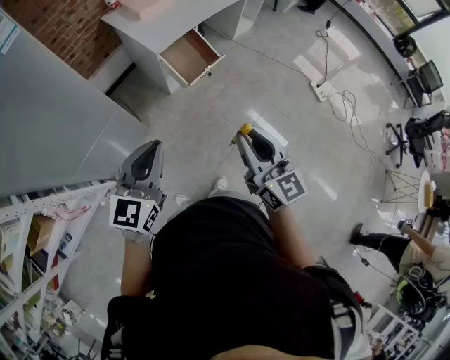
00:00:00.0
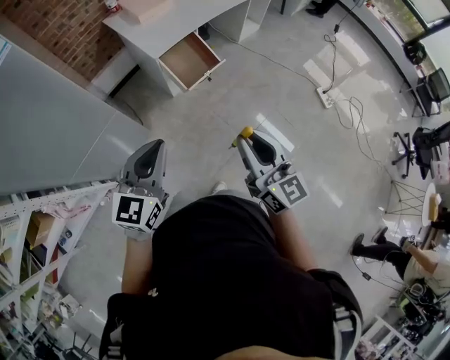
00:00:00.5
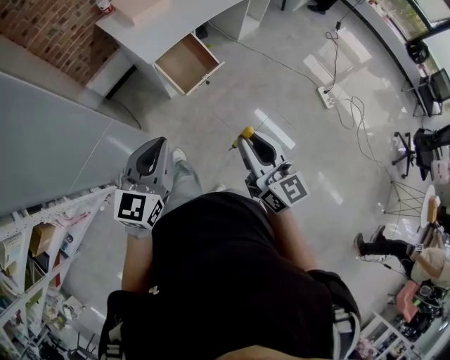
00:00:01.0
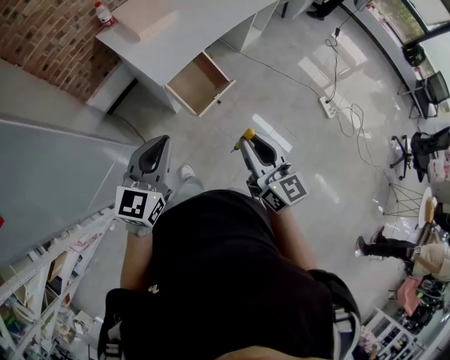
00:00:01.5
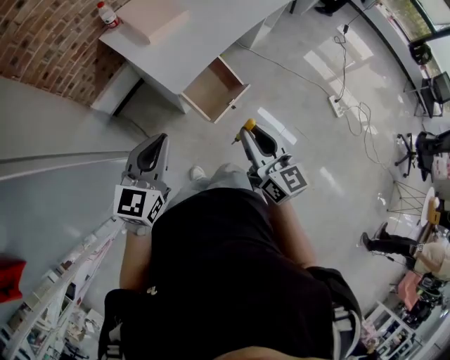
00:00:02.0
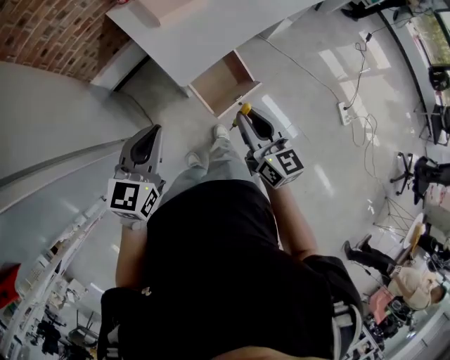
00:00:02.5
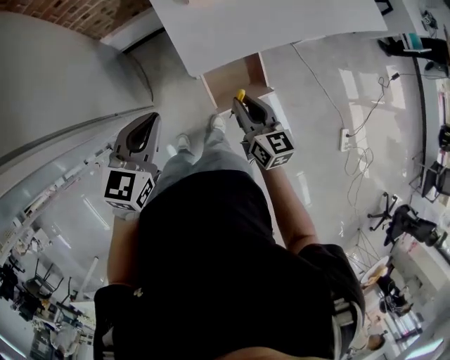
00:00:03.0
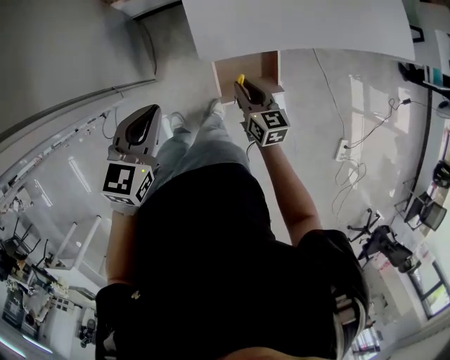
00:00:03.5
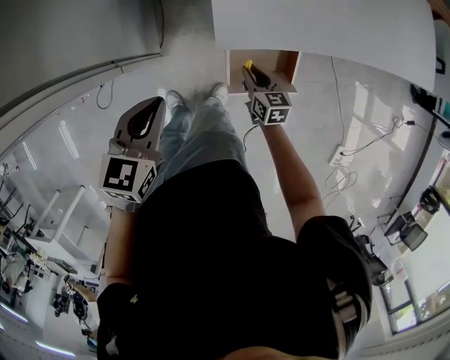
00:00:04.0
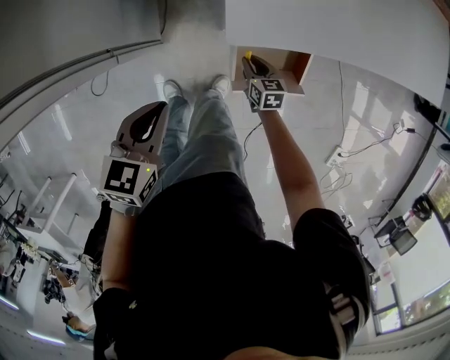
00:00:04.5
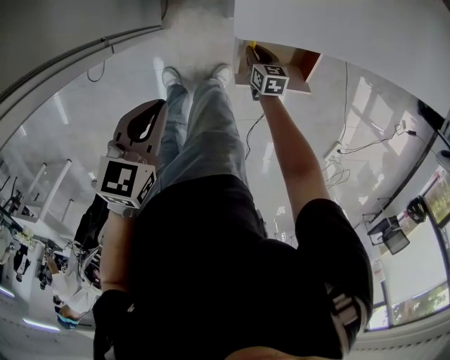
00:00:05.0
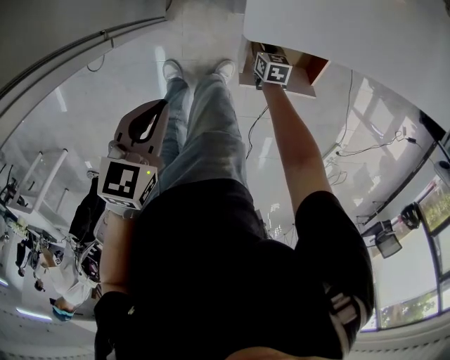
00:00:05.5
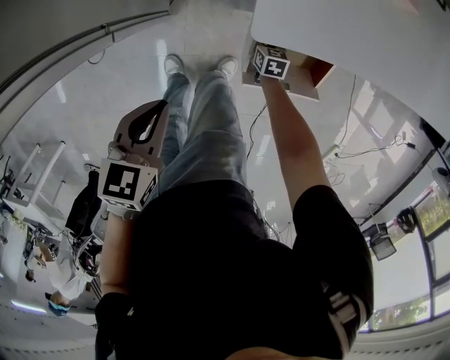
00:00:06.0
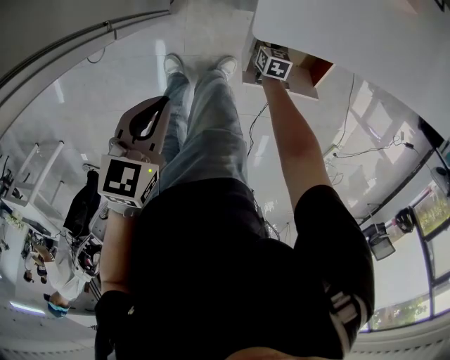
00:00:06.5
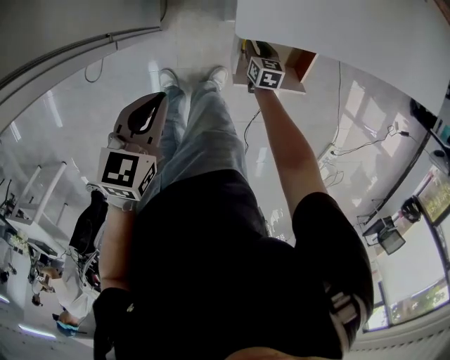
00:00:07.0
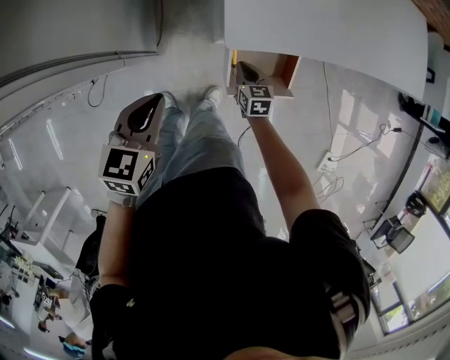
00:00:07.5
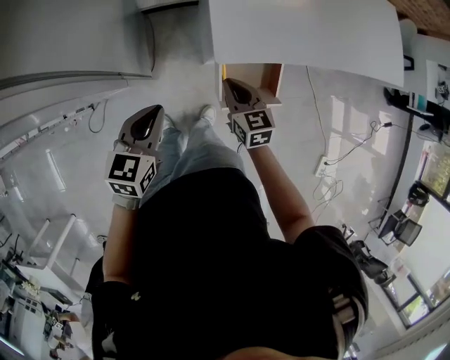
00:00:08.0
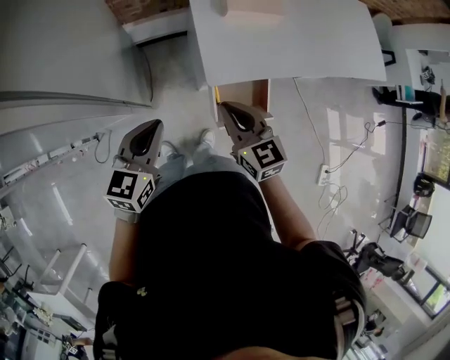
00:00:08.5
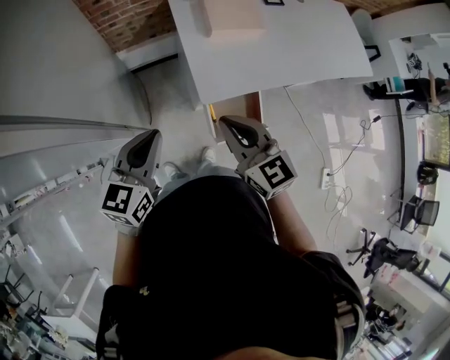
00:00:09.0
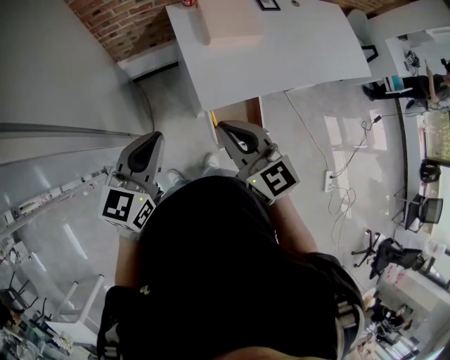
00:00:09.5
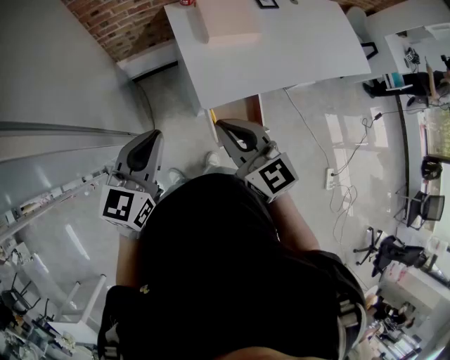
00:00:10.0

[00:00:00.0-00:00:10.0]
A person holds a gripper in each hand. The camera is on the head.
00:00:00.0 to 00:00:02.0: The grippers both shift forward by roughly 30 cm.
00:00:02.0 to 00:00:04.0: The right gripper goes some 40 cm downward, and points its fingers roughly 30 degrees further downward. The left gripper is displaced downward by roughly 15 cm, and changes its angle by about 40 degrees.
00:00:04.0 to 00:00:06.0: The right gripper travels downward by approximately 25 cm; the left gripper heads downward, covering some 15 cm.
00:00:06.0 to 00:00:08.0: The right gripper heads upward, covering some 40 cm, and swivels roughly 20 degrees, while the left gripper heads upward, covering about 15 cm.
00:00:08.0 to 00:00:10.0: Both grippers travel together upward, approximately 25 cm. The right gripper swivels approximately 20 degrees. Meanwhile the left gripper turns by approximately 20 degrees.

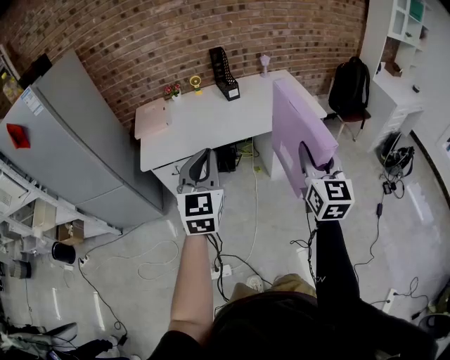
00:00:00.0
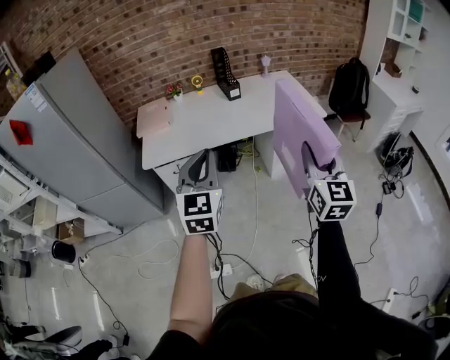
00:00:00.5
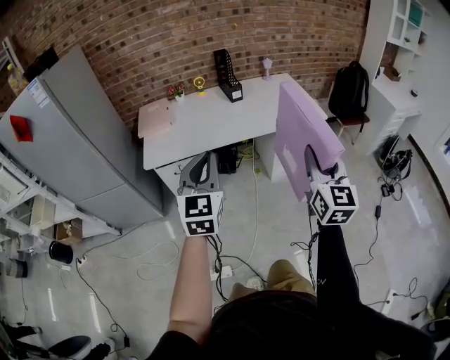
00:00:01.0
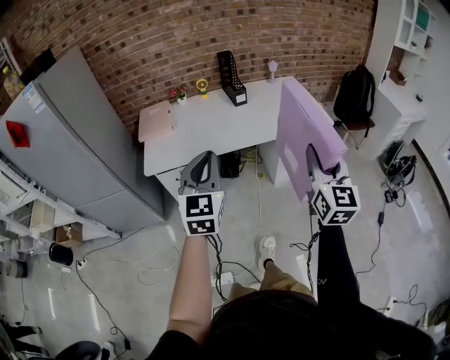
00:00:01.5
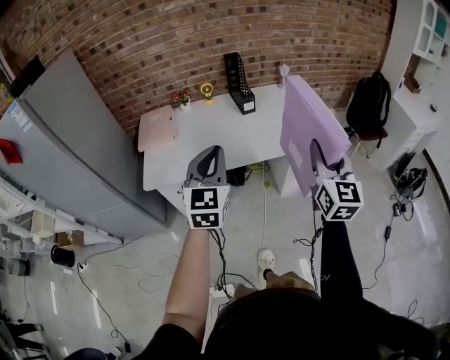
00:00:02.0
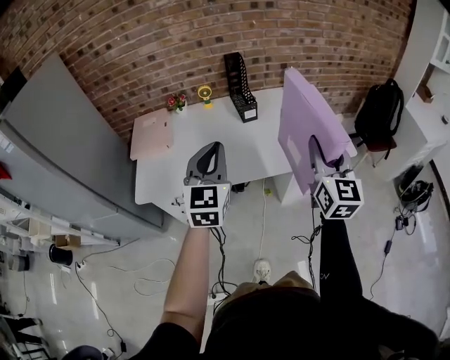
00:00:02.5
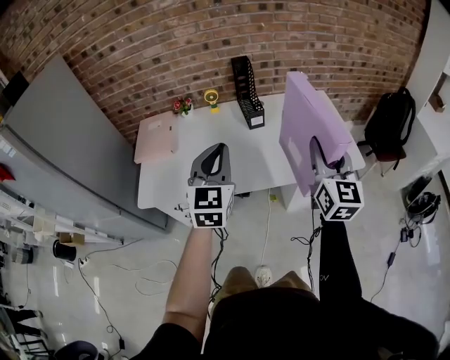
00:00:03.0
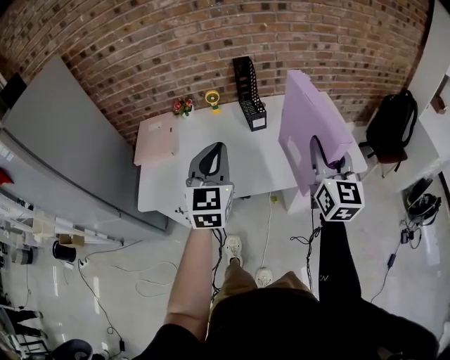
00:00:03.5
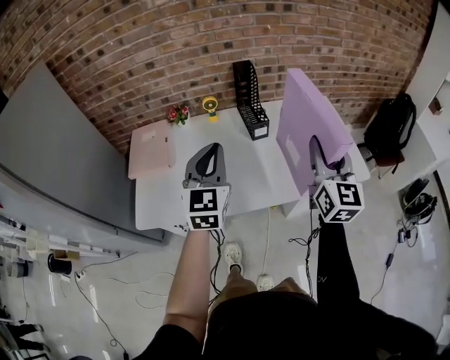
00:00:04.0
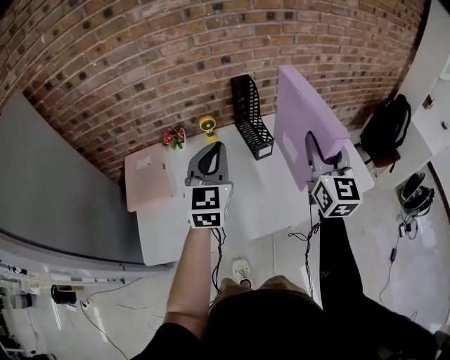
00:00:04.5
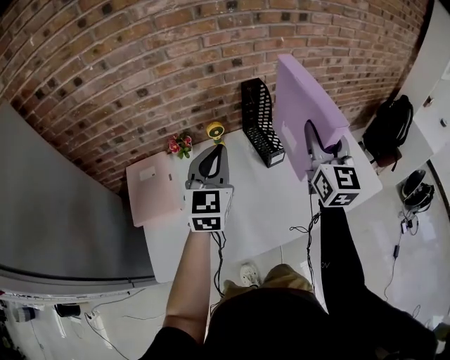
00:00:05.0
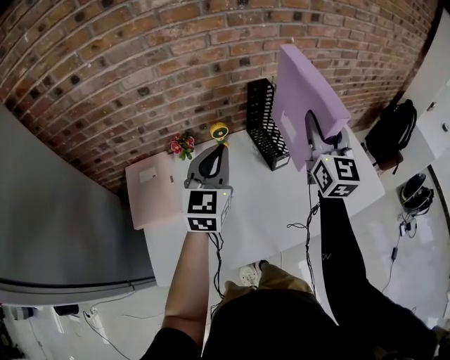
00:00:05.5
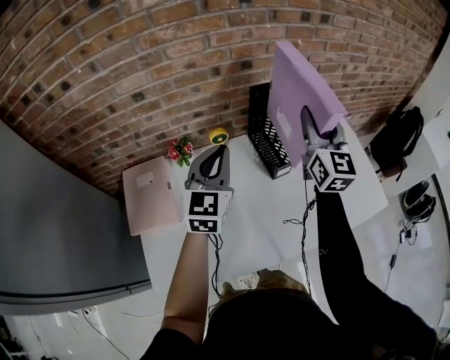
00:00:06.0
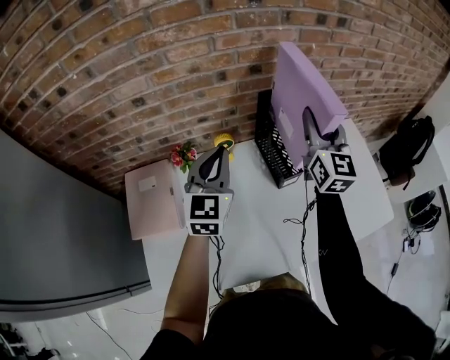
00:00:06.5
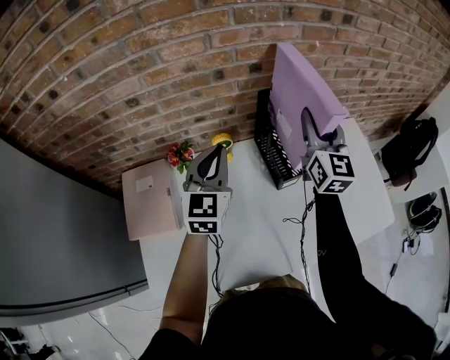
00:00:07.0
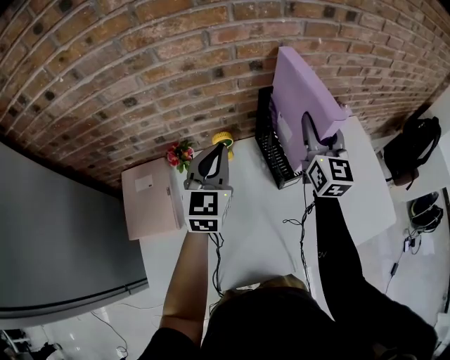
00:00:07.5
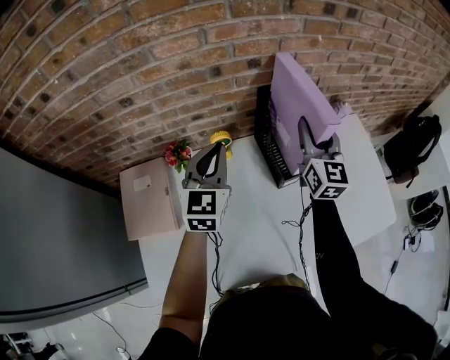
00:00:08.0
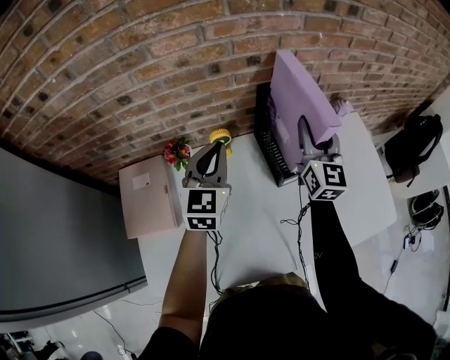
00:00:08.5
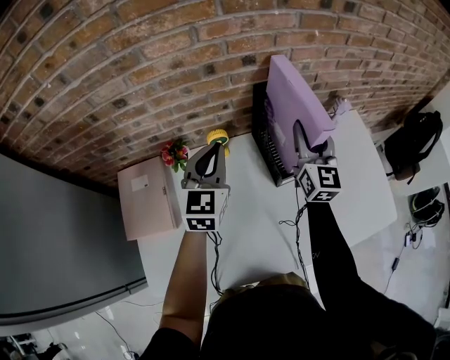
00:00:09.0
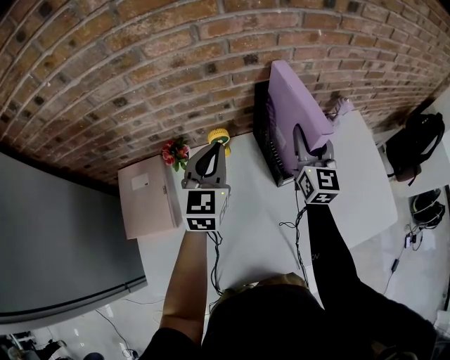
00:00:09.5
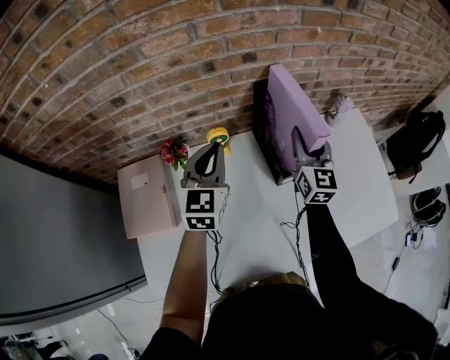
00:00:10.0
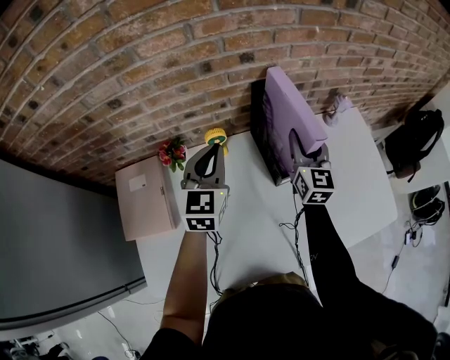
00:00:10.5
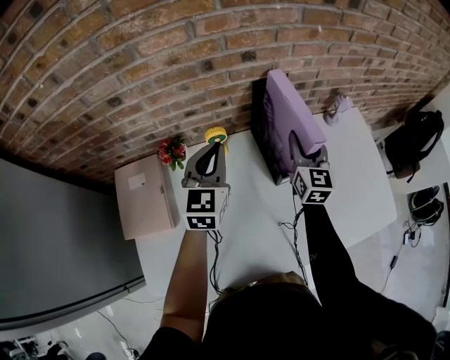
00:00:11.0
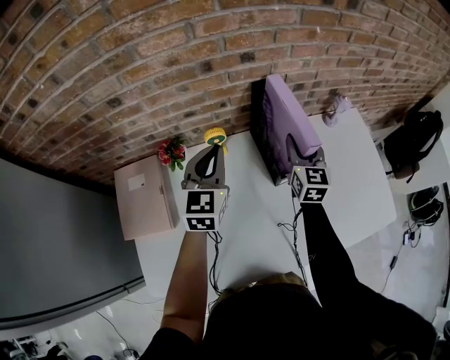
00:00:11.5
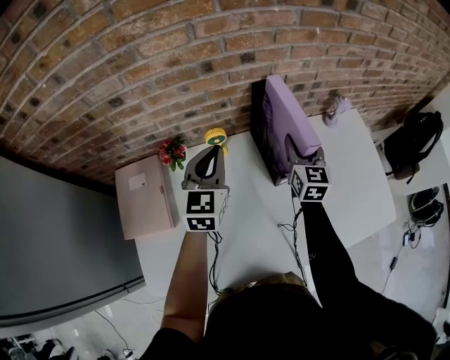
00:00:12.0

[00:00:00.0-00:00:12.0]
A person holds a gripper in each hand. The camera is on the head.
00:00:00.0 to 00:00:02.0: The grippers both shift forward by approximately 15 cm.
00:00:02.0 to 00:00:04.0: The two grippers go about 30 cm forward.
00:00:04.0 to 00:00:06.0: Both grippers move forward and to the left, about 30 cm.
00:00:06.0 to 00:00:08.0: The left gripper moves forward, about 10 cm. Meanwhile the right gripper moves forward and downward, about 15 cm.
00:00:08.0 to 00:00:10.0: The right gripper moves downward, about 5 cm.
00:00:10.0 to 00:00:12.0: The right gripper is displaced downward by roughly 5 cm.

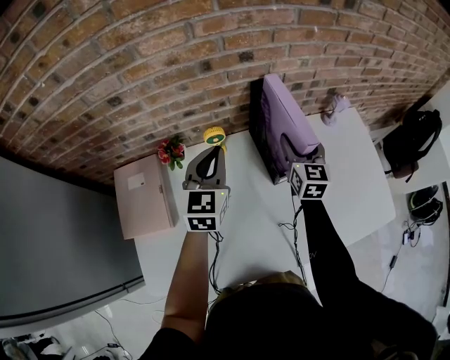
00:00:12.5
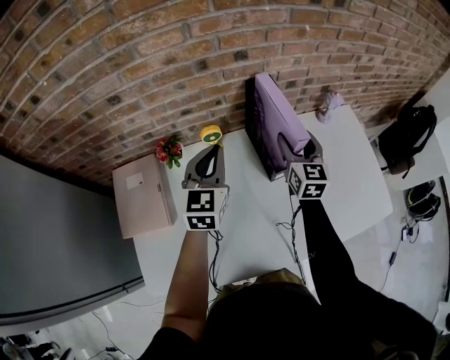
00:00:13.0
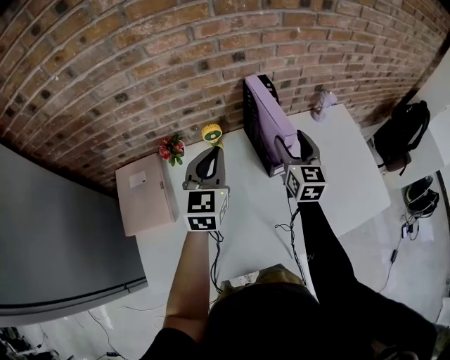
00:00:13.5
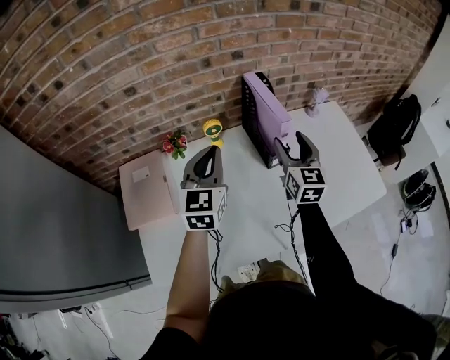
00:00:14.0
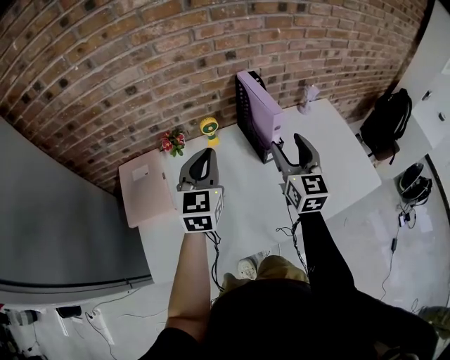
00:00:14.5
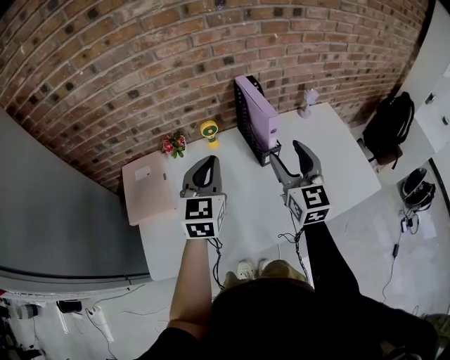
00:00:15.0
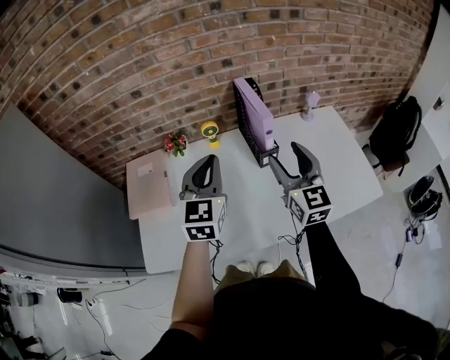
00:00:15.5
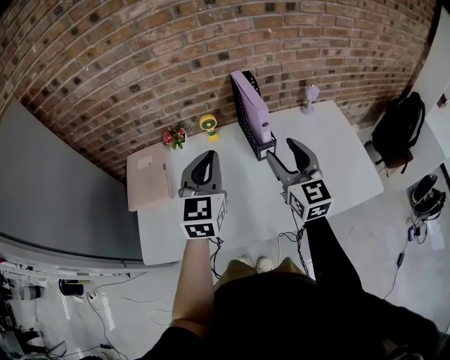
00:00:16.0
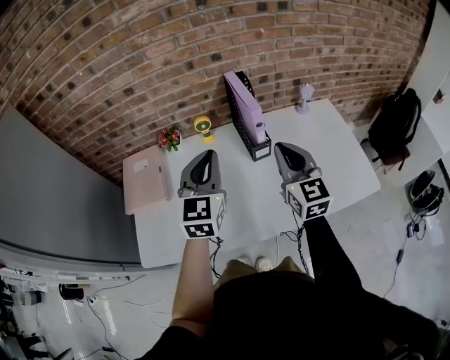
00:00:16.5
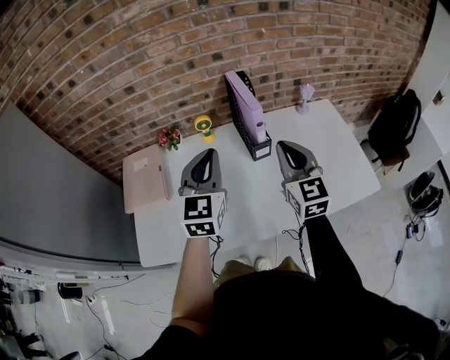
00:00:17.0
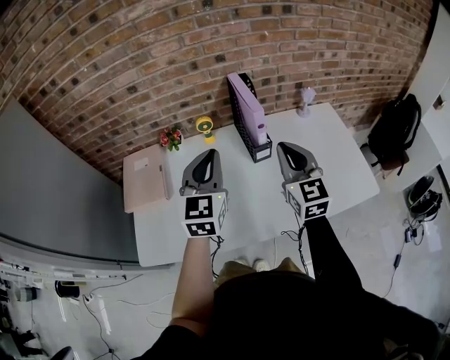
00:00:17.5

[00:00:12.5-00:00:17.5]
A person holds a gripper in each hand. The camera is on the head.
00:00:12.5 to 00:00:15.0: The right gripper moves backward and upward, about 25 cm. Meanwhile the left gripper moves backward, approximately 15 cm.
00:00:15.0 to 00:00:17.5: The right gripper changes place by roughly 5 cm, and closes, while the left gripper moves to the right, about 5 cm.
